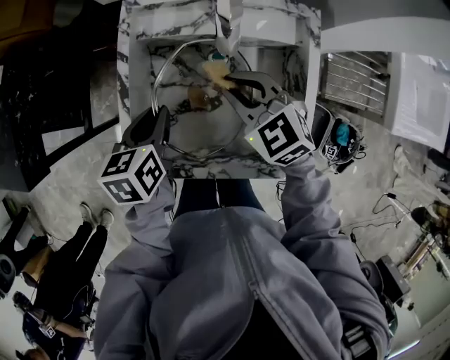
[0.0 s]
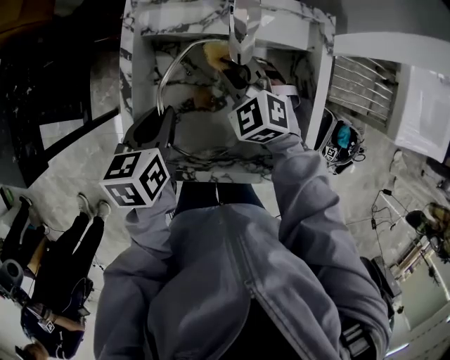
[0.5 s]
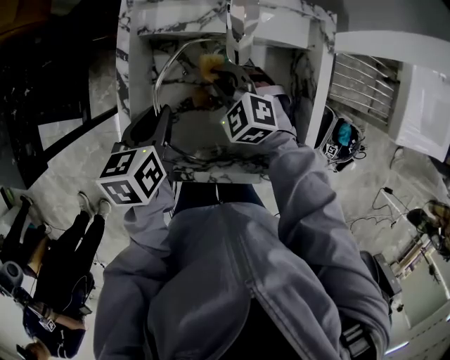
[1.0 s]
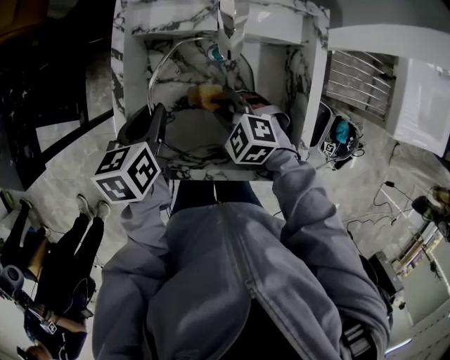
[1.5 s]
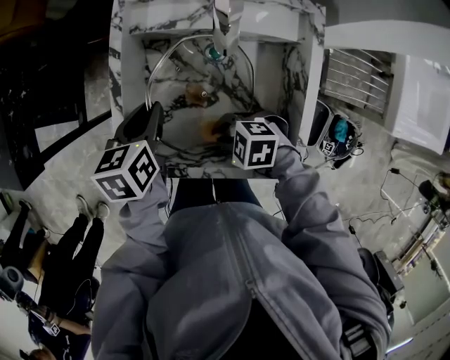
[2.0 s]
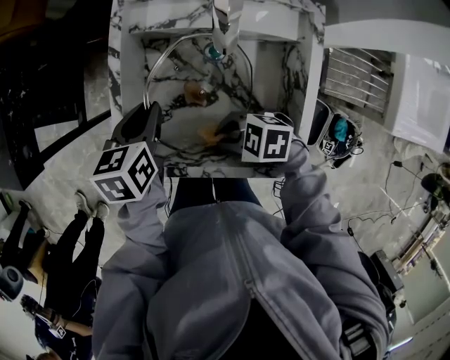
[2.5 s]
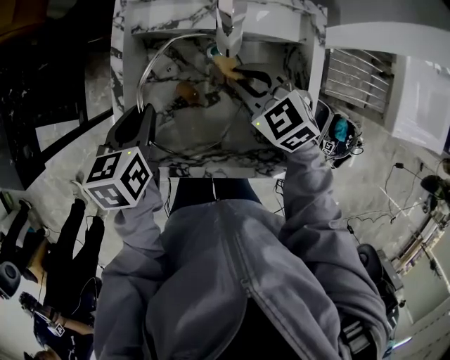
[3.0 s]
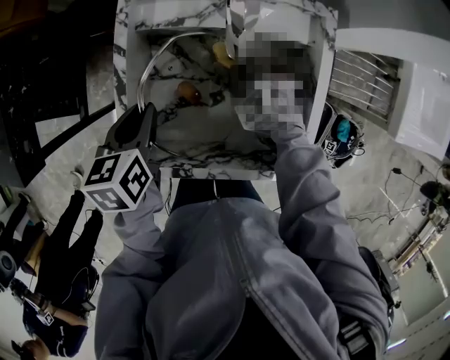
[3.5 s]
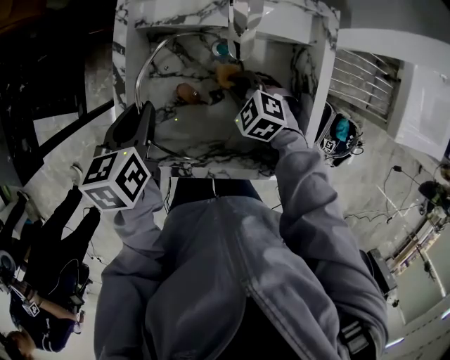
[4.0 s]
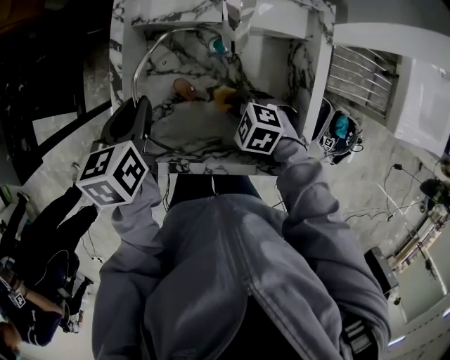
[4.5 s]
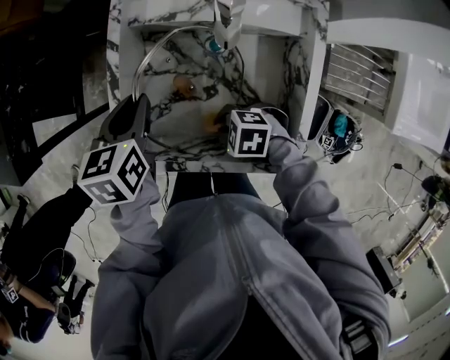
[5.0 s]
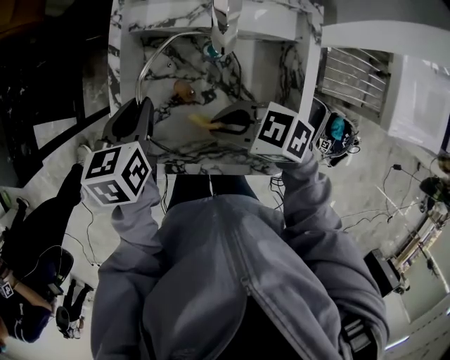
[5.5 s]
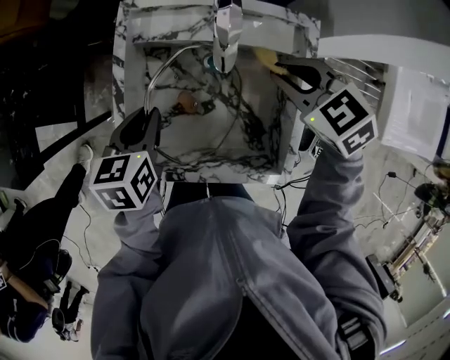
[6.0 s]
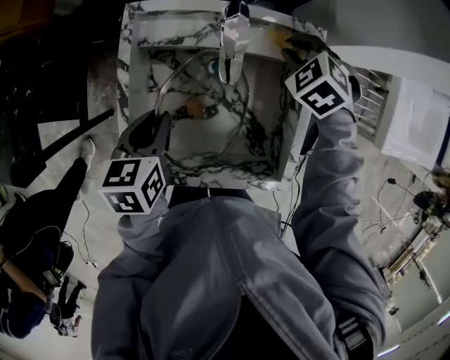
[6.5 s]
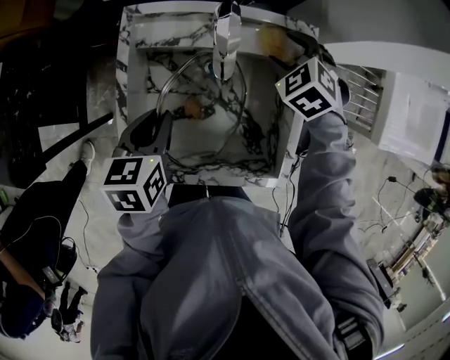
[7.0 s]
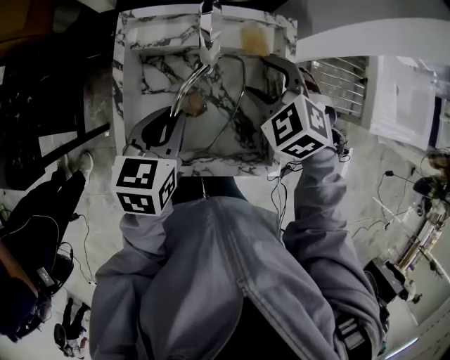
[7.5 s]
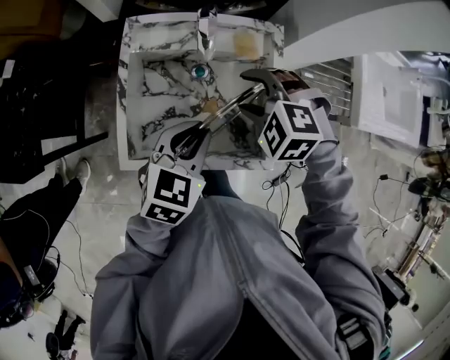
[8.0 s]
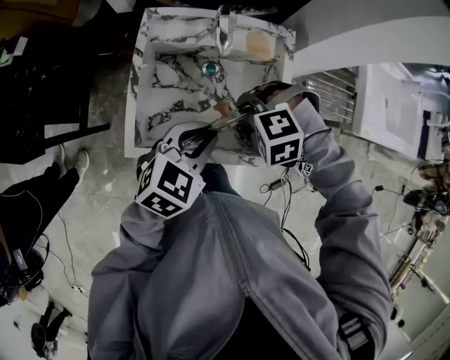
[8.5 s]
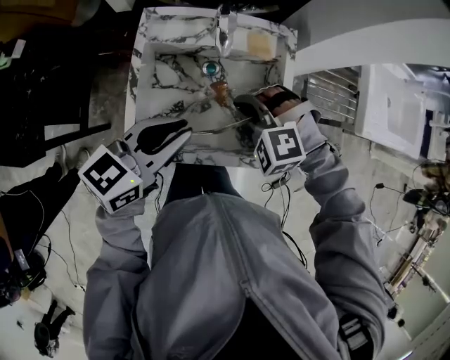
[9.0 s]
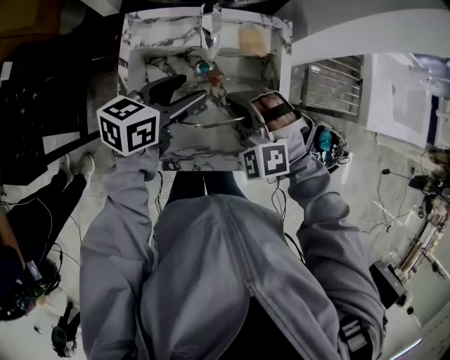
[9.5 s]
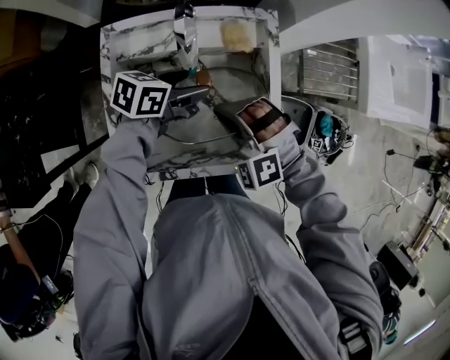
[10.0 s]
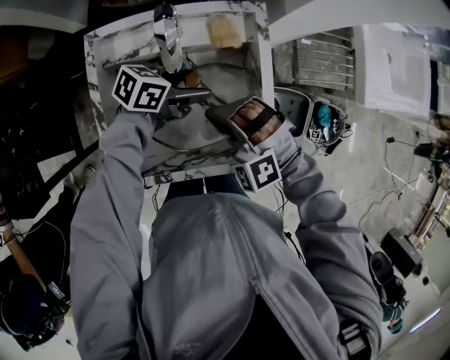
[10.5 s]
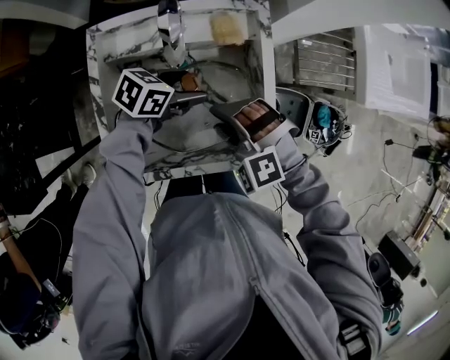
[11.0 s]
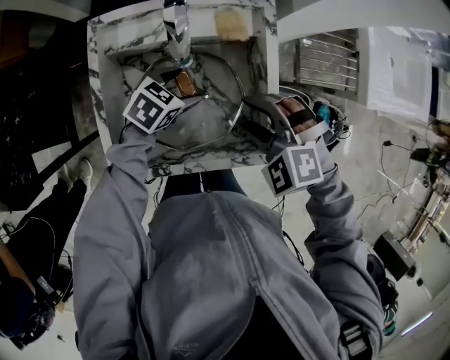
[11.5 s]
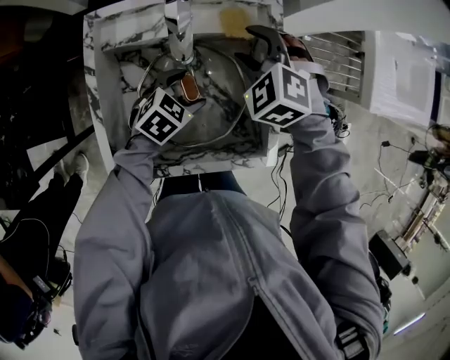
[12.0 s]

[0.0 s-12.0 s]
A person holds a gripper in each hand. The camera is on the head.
0.0 to 2.0 s: The right gripper changes place by approximately 20 cm, and turns by roughly 50 degrees.
2.0 to 4.0 s: The right gripper ends up roughly 15 cm from where it was, and changes its angle by about 30 degrees.
4.0 to 6.0 s: The right gripper shifts about 20 cm upward.
6.0 to 8.0 s: The right gripper goes some 10 cm backward, changes its angle by approximately 40 degrees, and opens its fingers, while the left gripper heads to the right, backward and upward, covering about 20 cm, and turns by about 40 degrees.
8.0 to 10.0 s: The right gripper heads downward, covering roughly 5 cm, turns by some 30 degrees, and closes its fingers. The left gripper ends up roughly 20 cm from where it was, rotates roughly 40 degrees, and opens.
10.0 to 12.0 s: The right gripper shifts by roughly 15 cm, turns by roughly 30 degrees, and opens its fingers, while the left gripper goes roughly 10 cm downward, and swivels approximately 40 degrees.

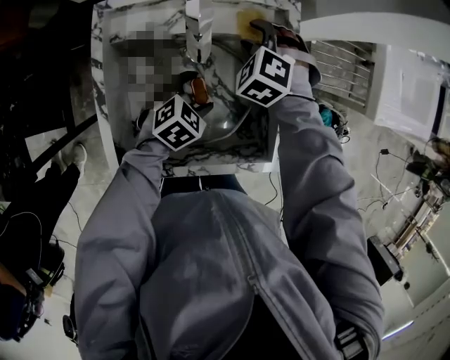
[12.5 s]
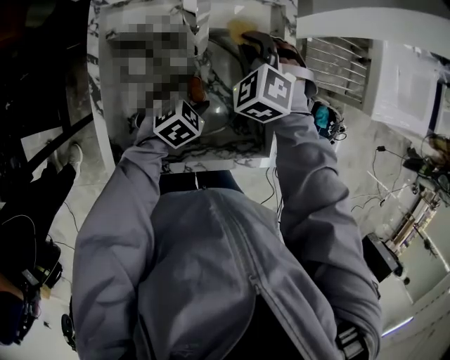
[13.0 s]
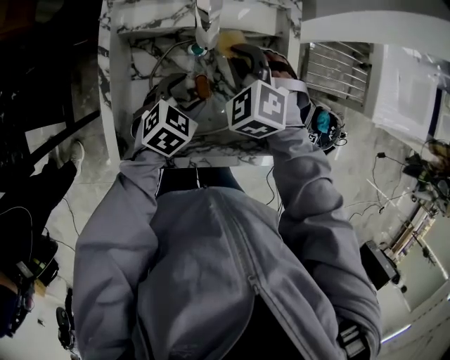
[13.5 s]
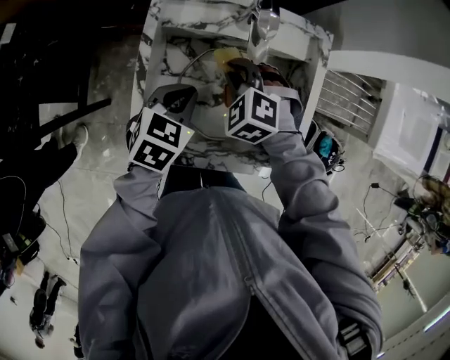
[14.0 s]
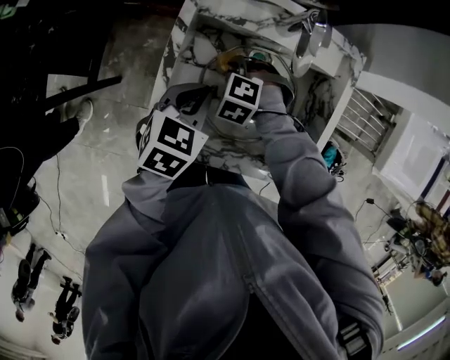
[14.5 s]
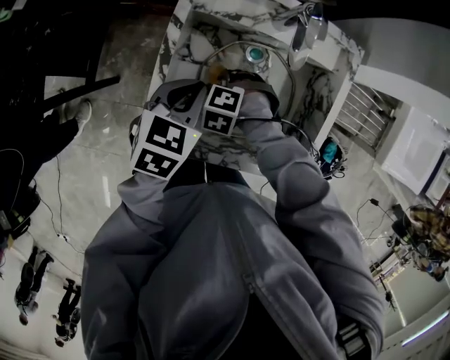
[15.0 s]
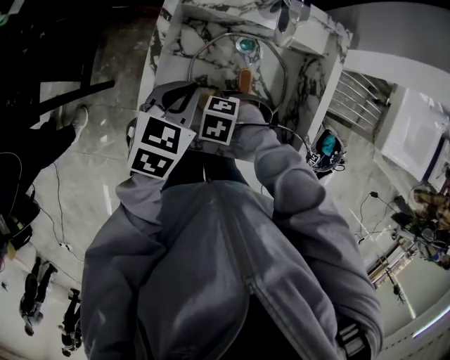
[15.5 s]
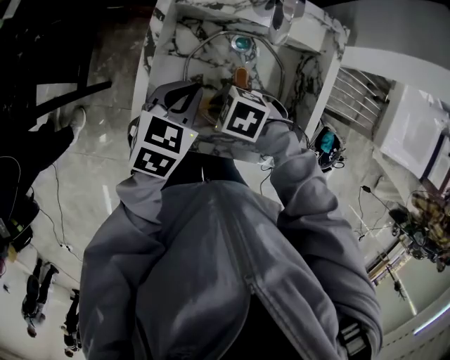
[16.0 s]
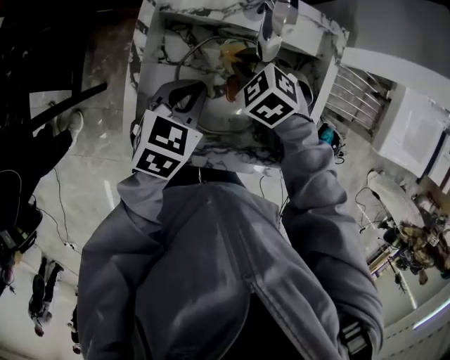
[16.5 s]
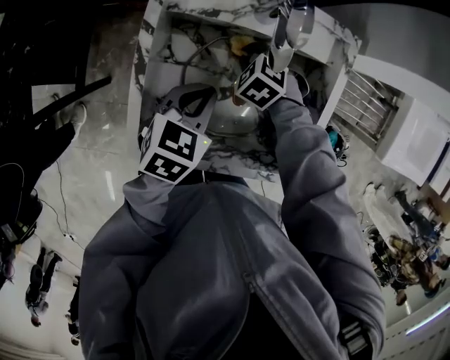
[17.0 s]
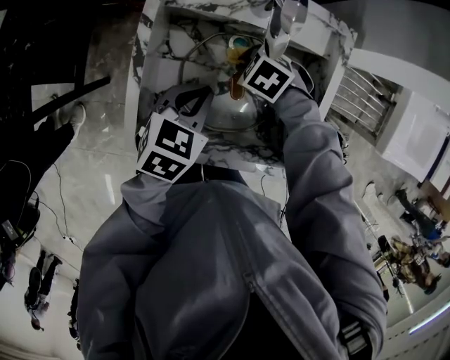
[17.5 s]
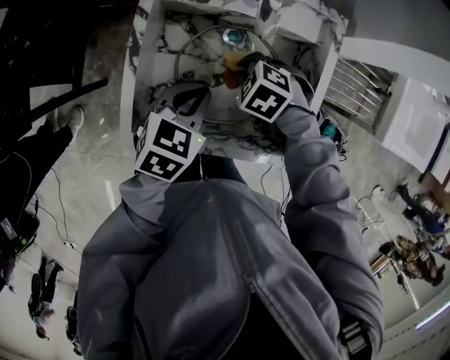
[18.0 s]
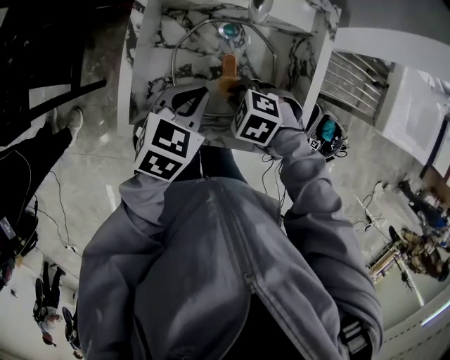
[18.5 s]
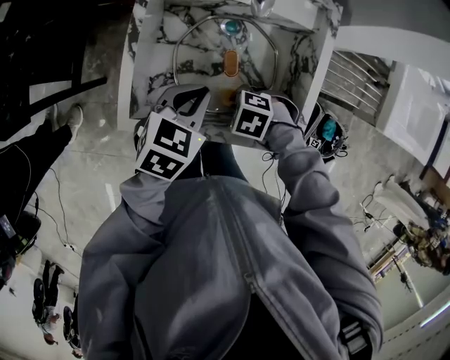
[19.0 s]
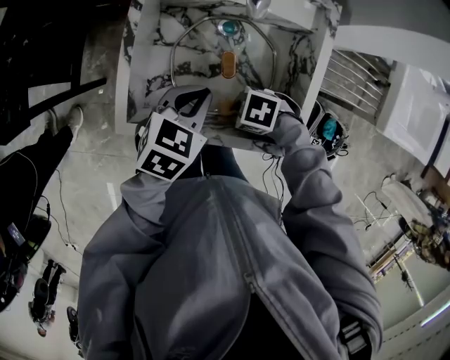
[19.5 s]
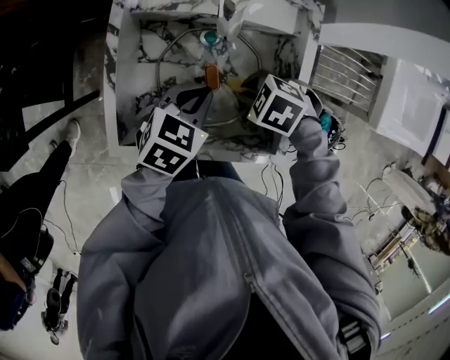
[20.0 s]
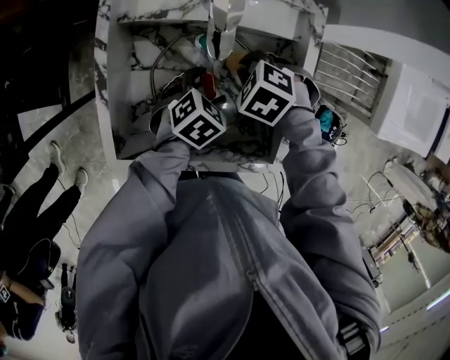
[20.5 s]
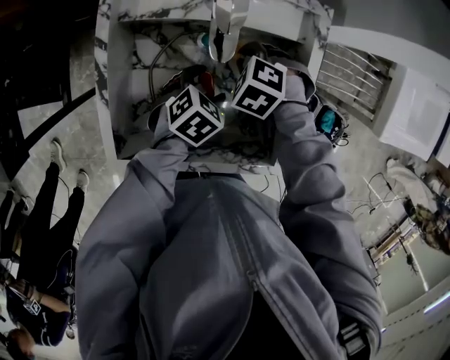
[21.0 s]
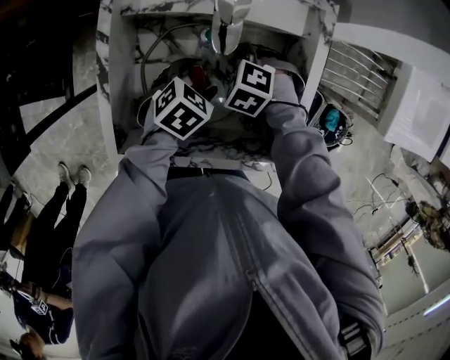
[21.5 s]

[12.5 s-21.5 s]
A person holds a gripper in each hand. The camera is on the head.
12.5 to 14.5 s: The right gripper shifts by about 25 cm, turns by approximately 20 degrees, and closes, while the left gripper ends up about 20 cm from where it was, turns by roughly 40 degrees, and closes up.
14.5 to 17.0 s: The left gripper moves about 5 cm. The right gripper goes upward and returns, some 5 cm each way.
17.0 to 19.5 s: The right gripper moves about 25 cm, and turns by some 40 degrees. Meanwhile the left gripper moves roughly 10 cm.
19.5 to 21.5 s: The left gripper moves downward, roughly 15 cm, rotates some 20 degrees, and opens its fingers. Meanwhile the right gripper moves roughly 25 cm, and turns by about 40 degrees.

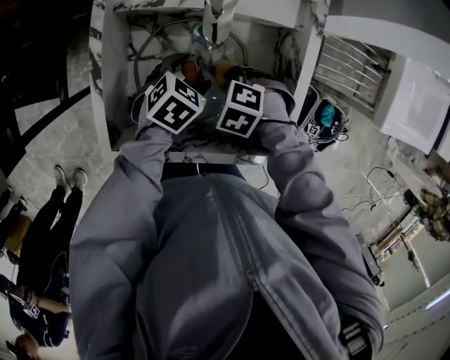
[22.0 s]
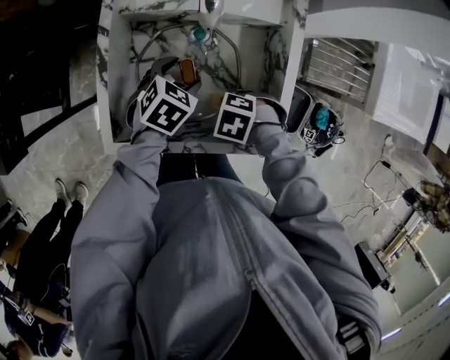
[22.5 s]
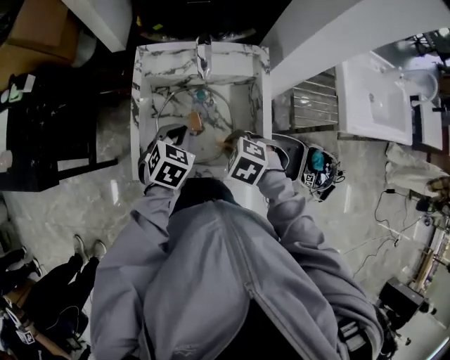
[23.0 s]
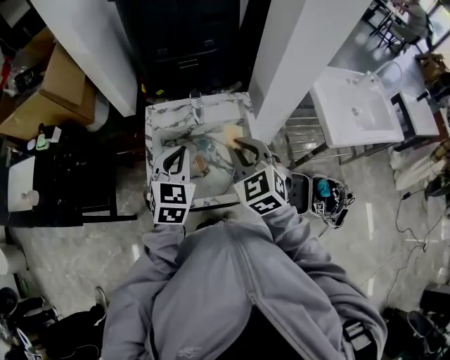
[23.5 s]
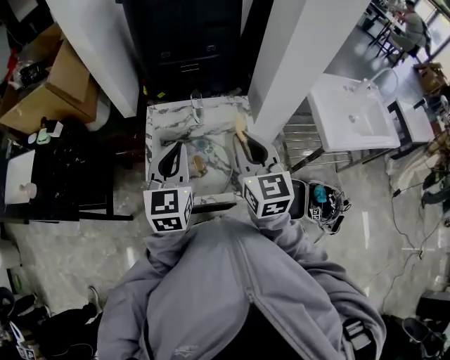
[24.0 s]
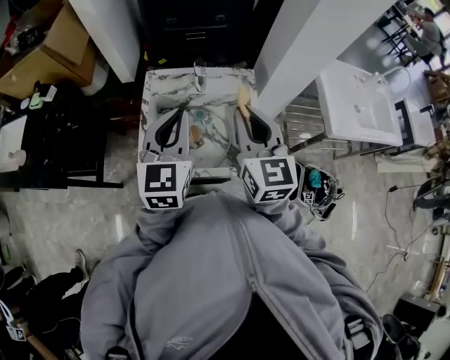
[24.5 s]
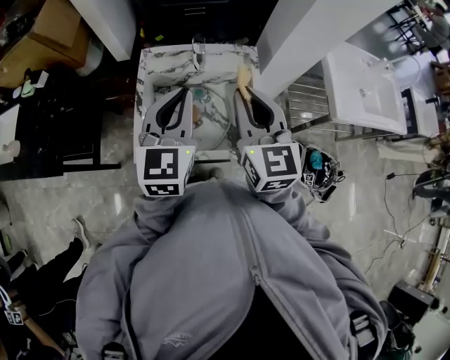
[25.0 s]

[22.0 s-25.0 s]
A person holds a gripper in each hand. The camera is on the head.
22.0 to 23.5 s: The grippers both shift upward by some 40 cm. The right gripper tilts its fingers about 50 degrees upward; the left gripper tilts its fingers roughly 40 degrees upward, and closes.
23.5 to 25.0 s: The right gripper changes its angle by approximately 30 degrees. The left gripper ends up some 5 cm from where it was, and turns by roughly 20 degrees.

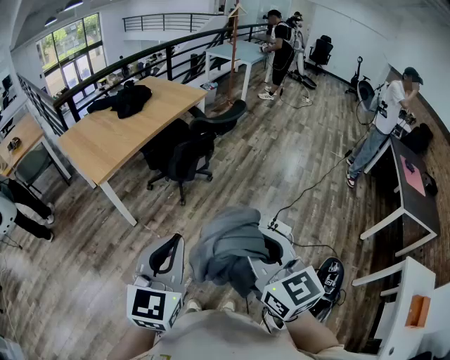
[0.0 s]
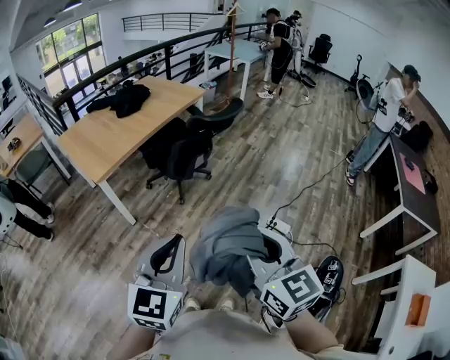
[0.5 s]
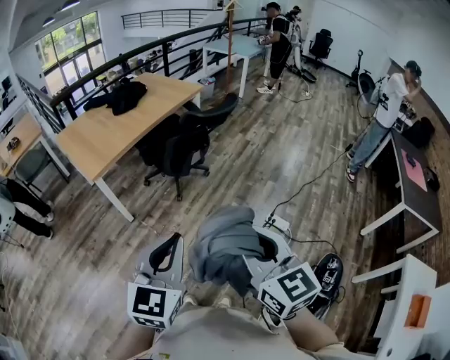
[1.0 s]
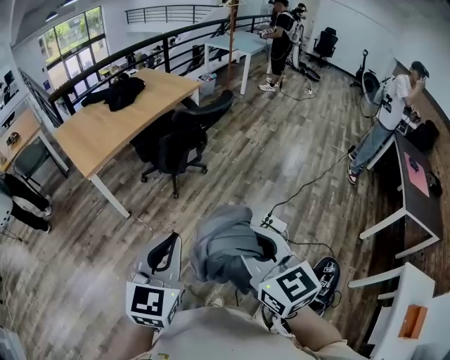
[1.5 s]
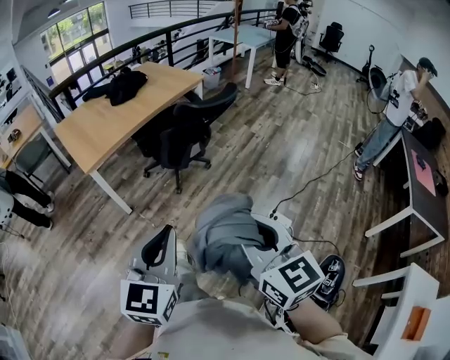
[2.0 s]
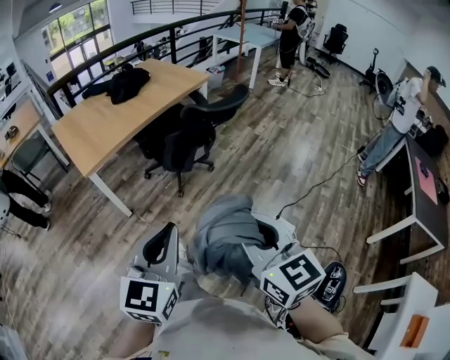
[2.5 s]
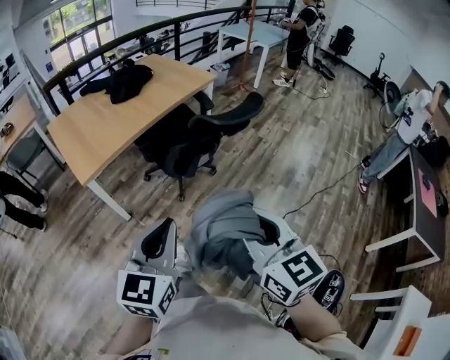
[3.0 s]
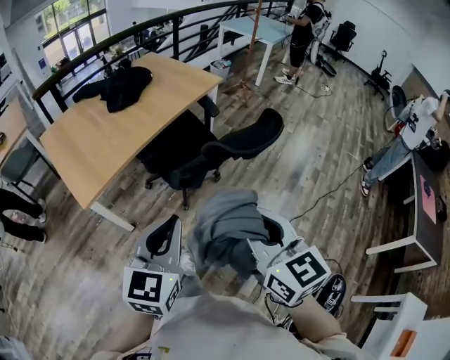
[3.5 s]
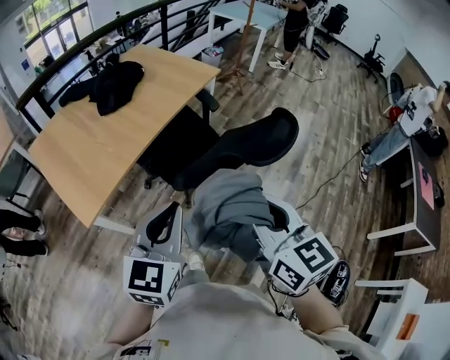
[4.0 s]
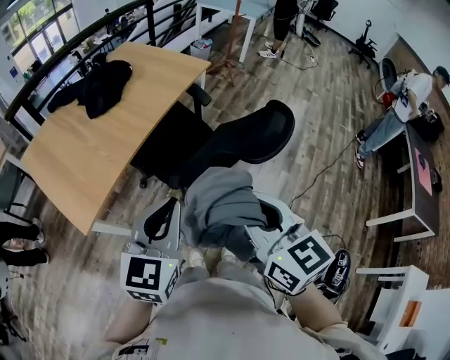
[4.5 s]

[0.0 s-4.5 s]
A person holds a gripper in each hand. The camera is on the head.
0.0 to 2.0 s: The left gripper moves to the right and downward, some 10 cm. Meanwhile the right gripper shifts approximately 15 cm to the right, forward and downward.
2.0 to 4.5 s: The two grippers travel together, forward, some 50 cm.
